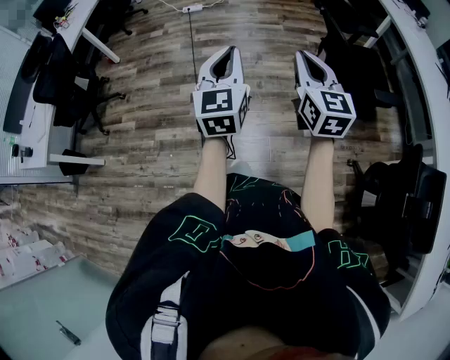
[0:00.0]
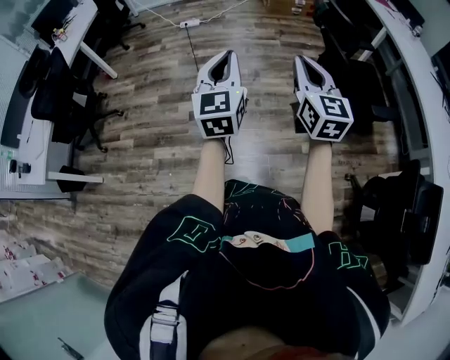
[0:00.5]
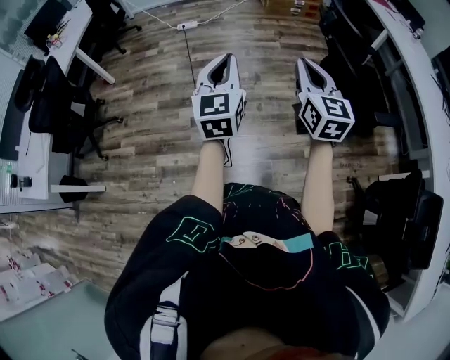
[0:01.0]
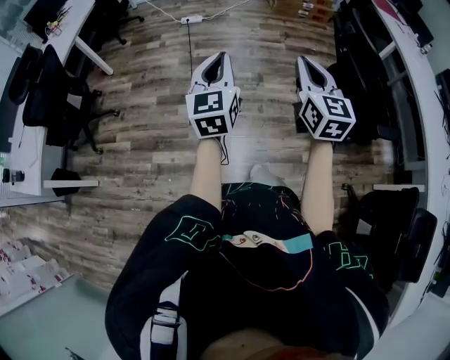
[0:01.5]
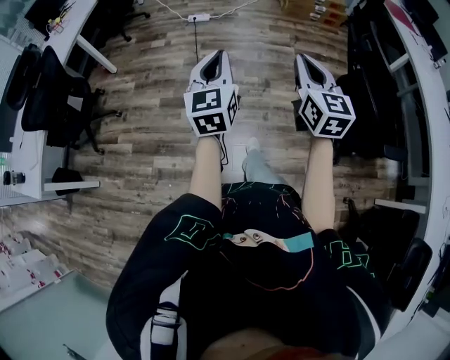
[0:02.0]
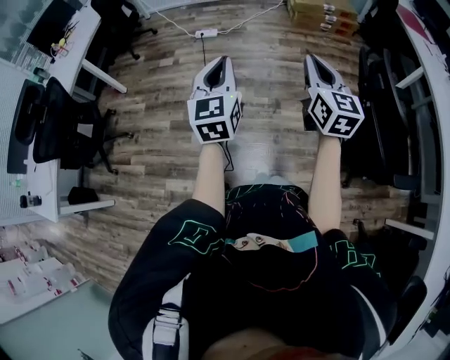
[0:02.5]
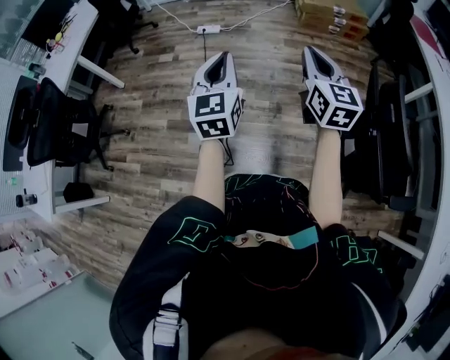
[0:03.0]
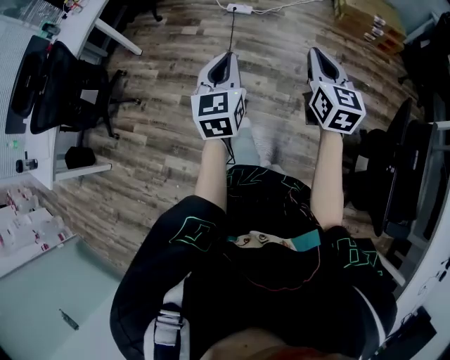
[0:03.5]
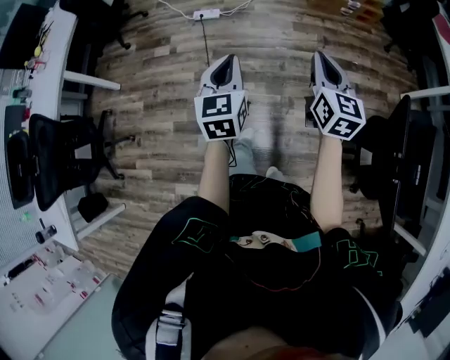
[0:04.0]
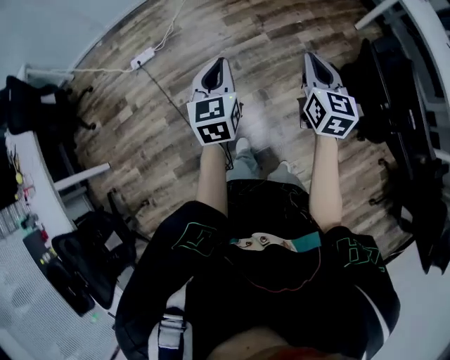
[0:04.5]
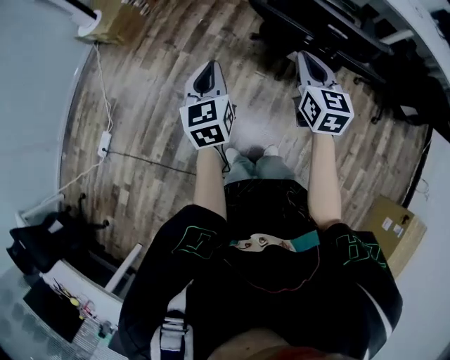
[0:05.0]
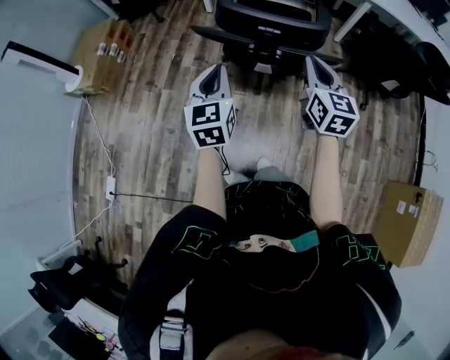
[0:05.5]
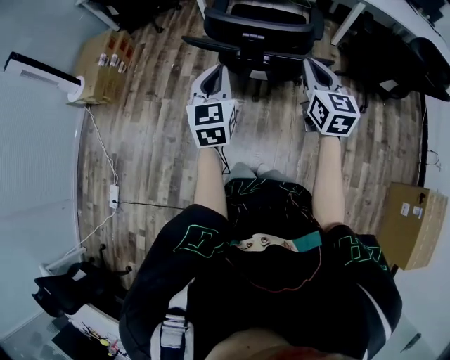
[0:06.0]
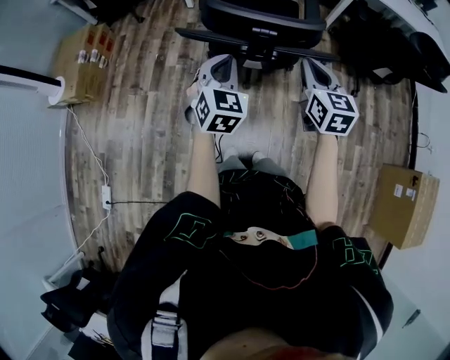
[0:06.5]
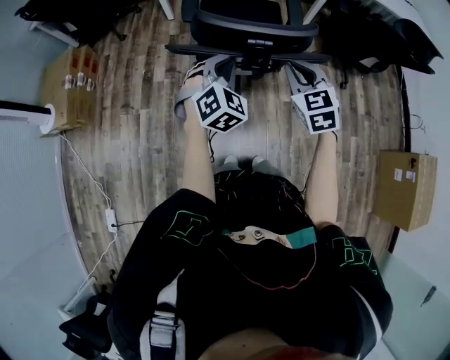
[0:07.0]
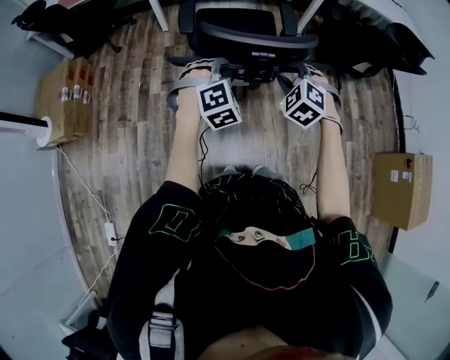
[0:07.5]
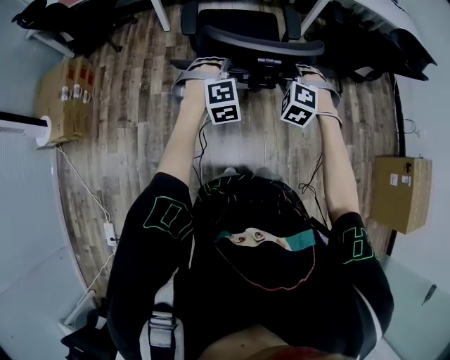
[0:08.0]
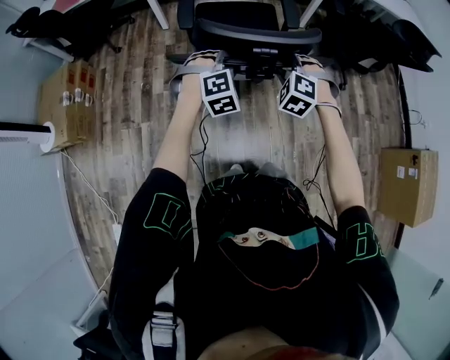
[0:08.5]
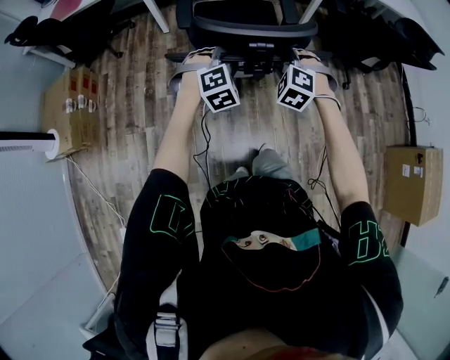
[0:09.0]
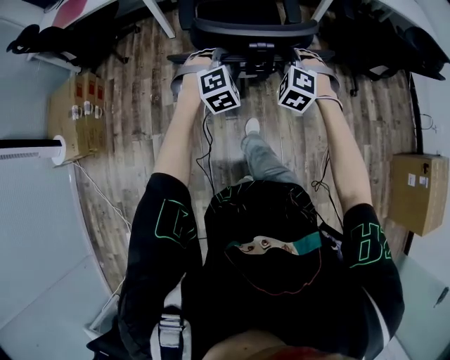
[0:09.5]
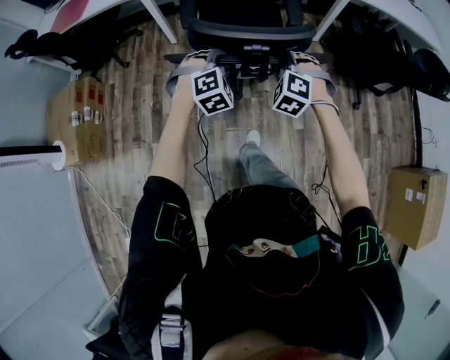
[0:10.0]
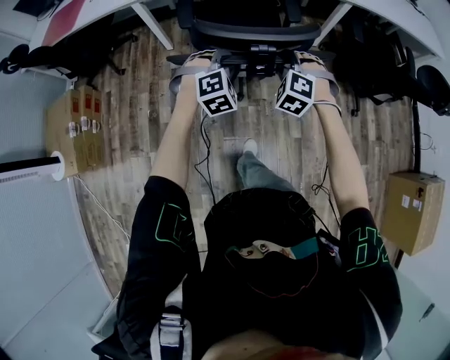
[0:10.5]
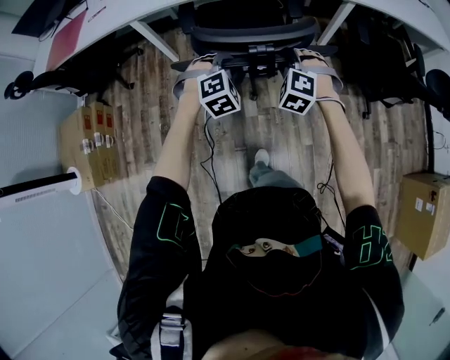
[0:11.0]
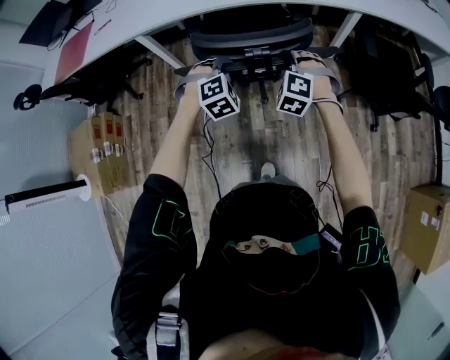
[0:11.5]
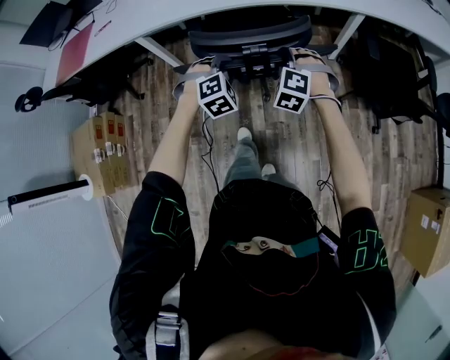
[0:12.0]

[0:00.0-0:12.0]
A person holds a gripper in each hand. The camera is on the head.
0:00.0 to 0:02.0: The left gripper goes roughly 30 cm forward and to the left. The right gripper is displaced forward by approximately 30 cm.
0:02.0 to 0:04.0: The two grippers travel together, forward, some 40 cm.
0:04.0 to 0:06.0: The pair of grippers is taken about 50 cm. The left gripper changes its angle by roughly 80 degrees, while the right gripper changes its angle by about 70 degrees.
0:06.0 to 0:08.0: The right gripper heads downward, to the left and forward, covering approximately 15 cm, rotates around the line of its fingers by roughly 70 degrees, counterclockwise from behind, and opens up. The left gripper shifts roughly 20 cm forward and downward, rolls clockwise, seen from behind, by about 70 degrees, and opens its fingers.
0:08.0 to 0:10.0: Both grippers travel together forward, about 20 cm.
0:10.0 to 0:12.0: Both grippers move forward, about 25 cm.

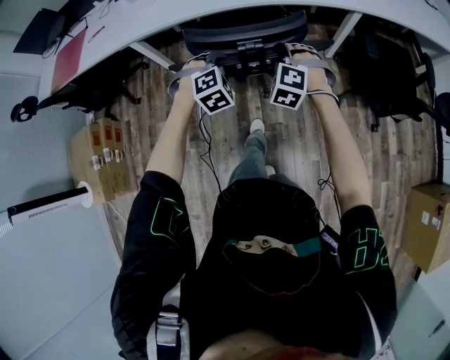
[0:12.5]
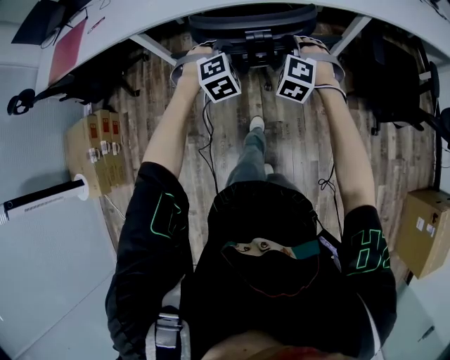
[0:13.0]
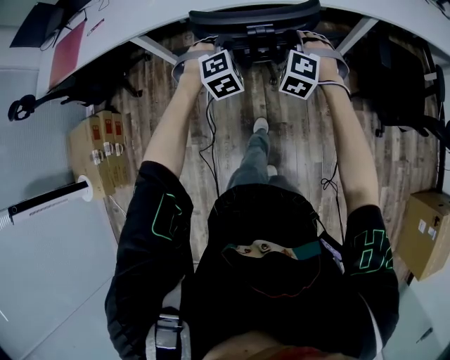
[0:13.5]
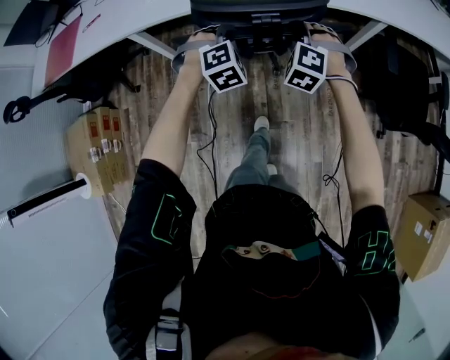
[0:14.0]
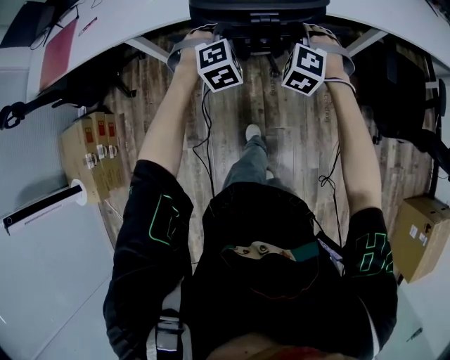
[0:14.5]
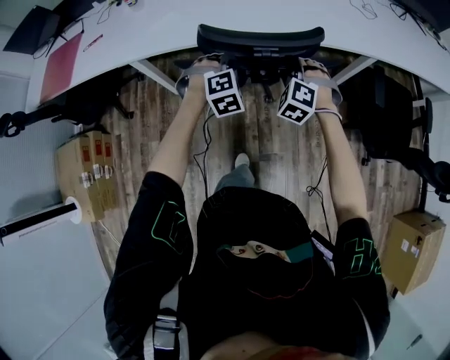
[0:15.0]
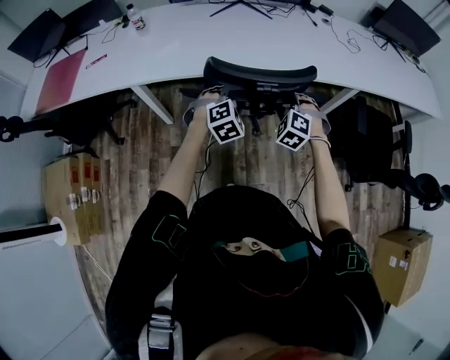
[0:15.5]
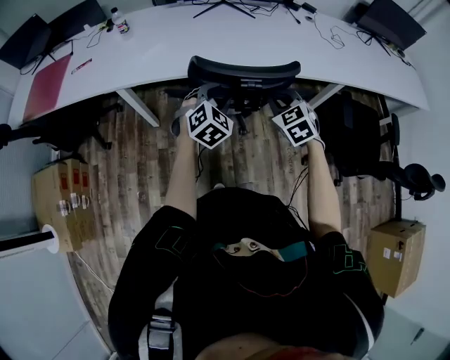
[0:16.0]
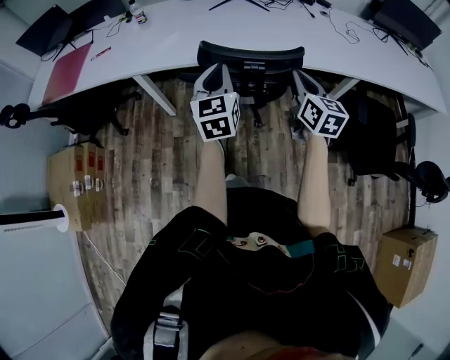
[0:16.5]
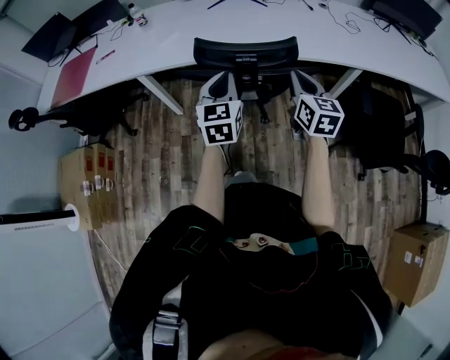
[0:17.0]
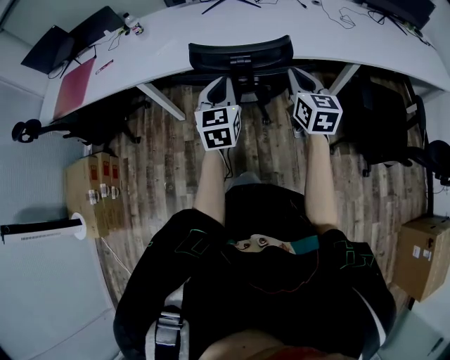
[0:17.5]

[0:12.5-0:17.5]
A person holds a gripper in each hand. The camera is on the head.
0:12.5 to 0:15.0: Both grippers move forward, about 15 cm.
0:15.0 to 0:17.5: The left gripper is displaced upward and backward by roughly 15 cm, rolls counterclockwise, seen from behind, by some 60 degrees, and closes. The right gripper moves upward, to the right and backward, about 15 cm, rolls clockwise, seen from behind, by approximately 70 degrees, and closes.

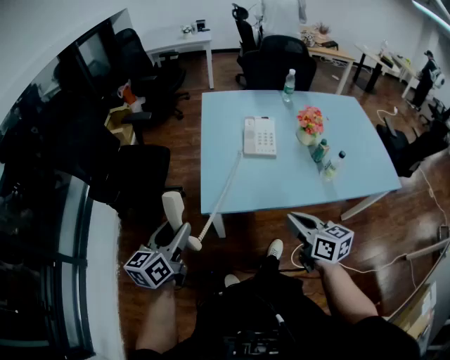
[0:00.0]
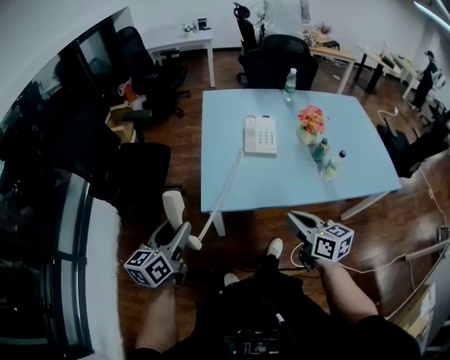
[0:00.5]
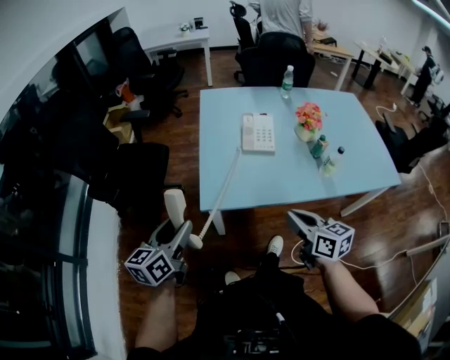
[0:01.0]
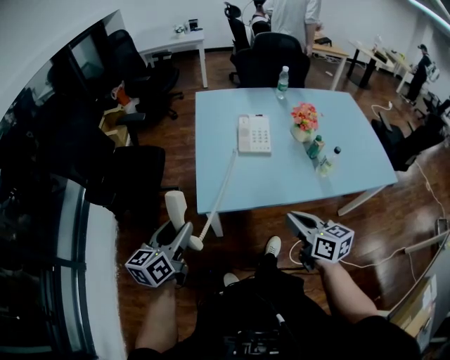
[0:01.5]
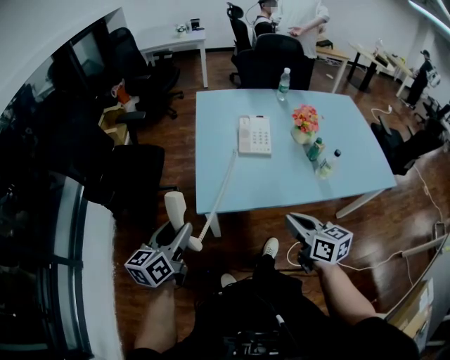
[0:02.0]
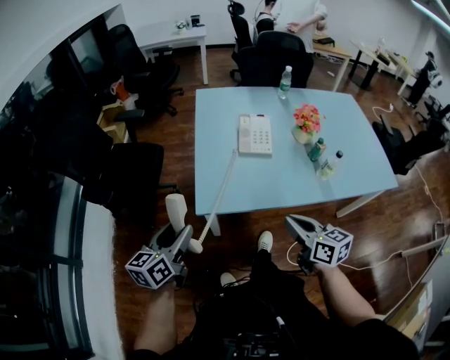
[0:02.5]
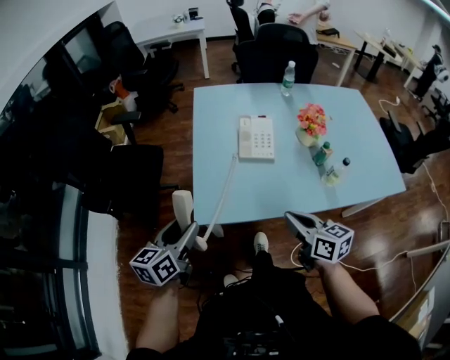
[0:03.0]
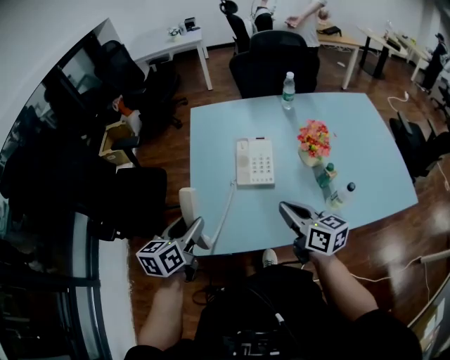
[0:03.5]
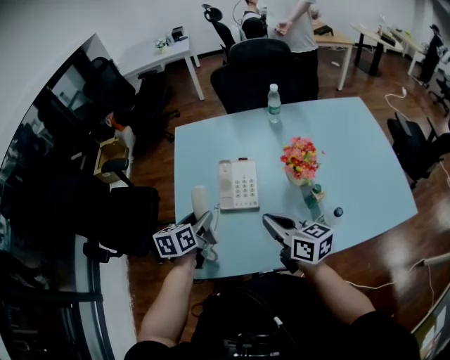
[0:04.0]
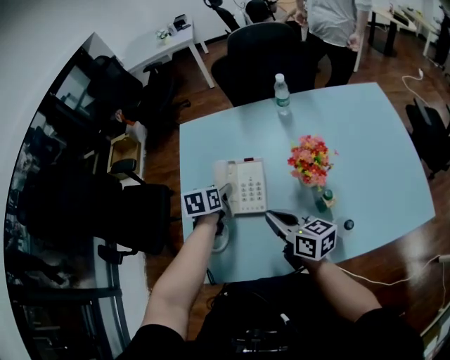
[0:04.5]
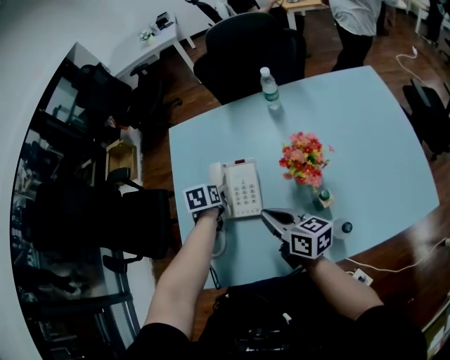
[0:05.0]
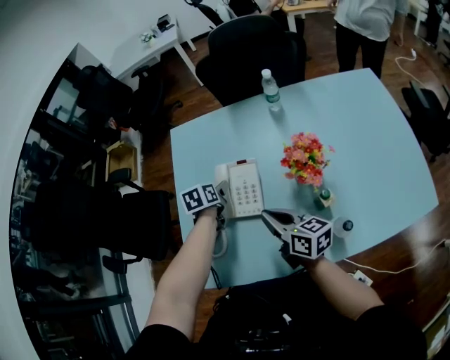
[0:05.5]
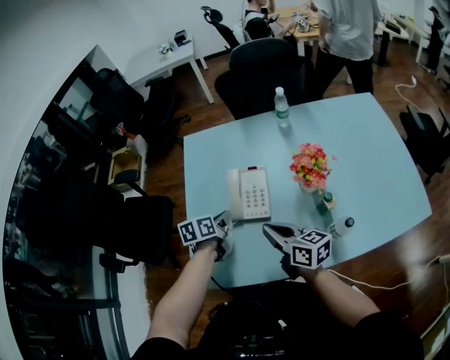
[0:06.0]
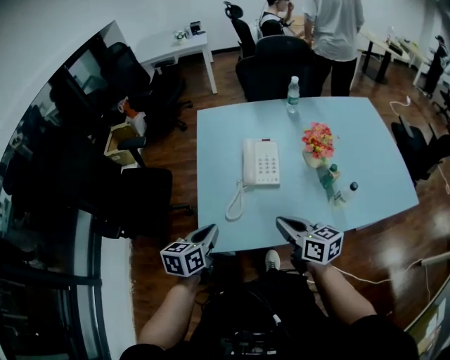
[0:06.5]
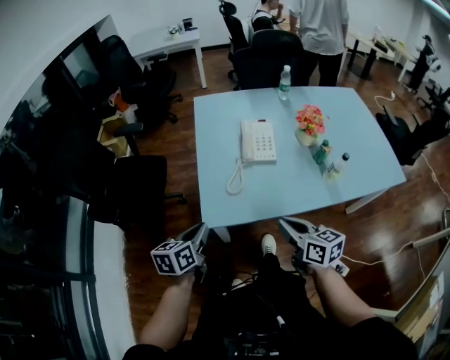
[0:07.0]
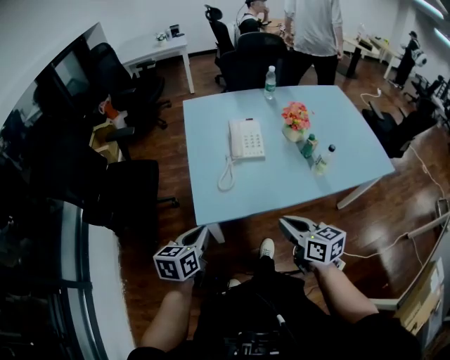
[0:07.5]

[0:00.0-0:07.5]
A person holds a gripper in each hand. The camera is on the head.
0:00.0 to 0:02.0: The grippers make only small movements.
0:02.0 to 0:04.0: The left gripper shifts some 35 cm forward and to the right, and swivels roughly 20 degrees. Meanwhile the right gripper travels forward by about 25 cm.
0:04.0 to 0:05.5: The left gripper is displaced forward, to the right and downward by about 20 cm, while the right gripper goes approximately 5 cm forward.
0:05.5 to 0:07.5: The right gripper is displaced backward by some 30 cm. Meanwhile the left gripper travels backward and to the left by roughly 50 cm, rotates roughly 20 degrees, and closes its fingers.

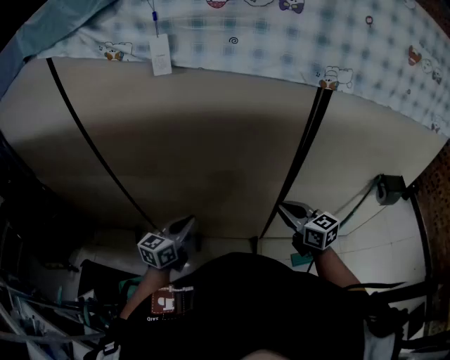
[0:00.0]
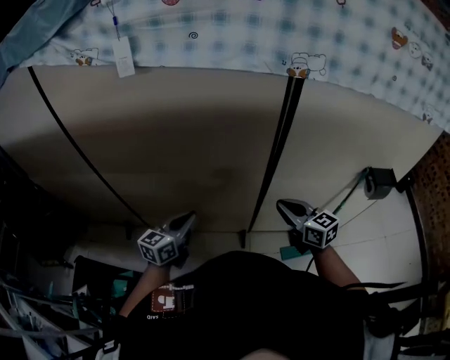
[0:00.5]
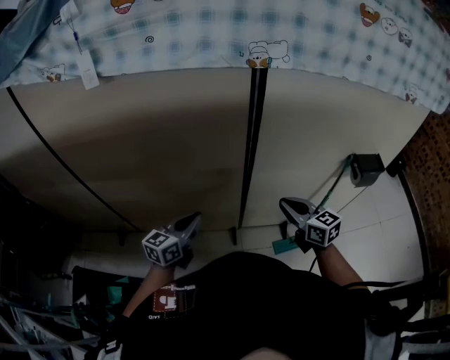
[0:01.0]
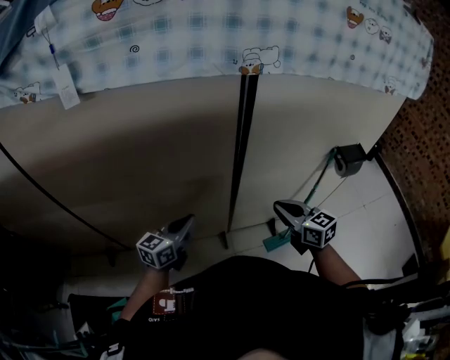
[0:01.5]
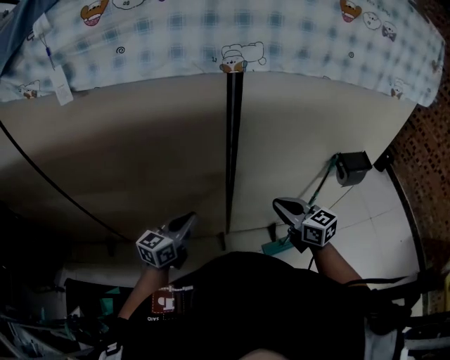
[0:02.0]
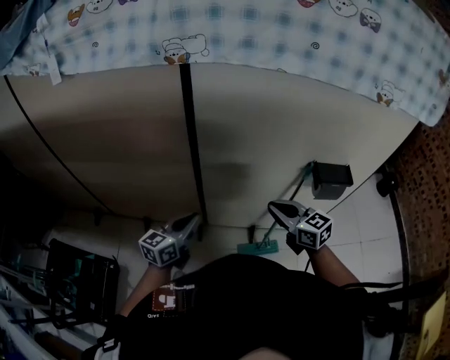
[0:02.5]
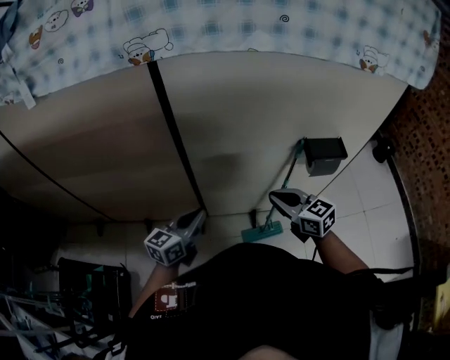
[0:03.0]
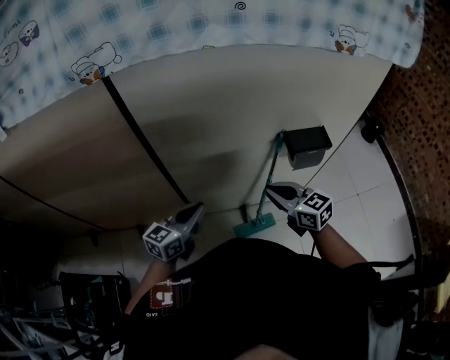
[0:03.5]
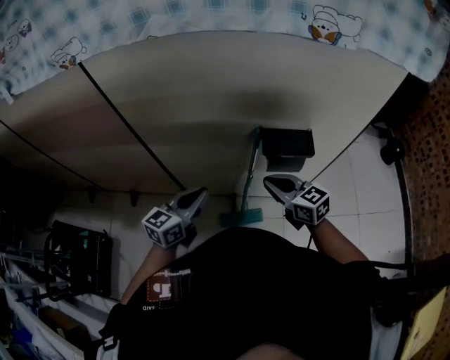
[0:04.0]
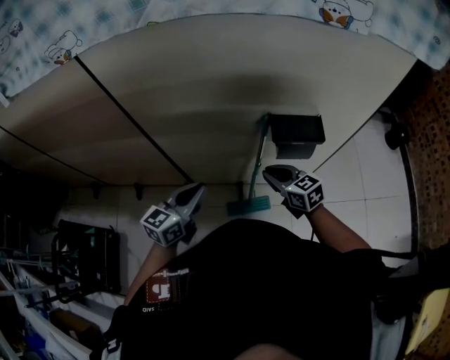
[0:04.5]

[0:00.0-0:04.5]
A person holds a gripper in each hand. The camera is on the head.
0:00.0 to 0:02.0: Both grippers travel together to the right, roughly 20 cm.
0:02.0 to 0:04.5: The two grippers go about 40 cm to the right.
